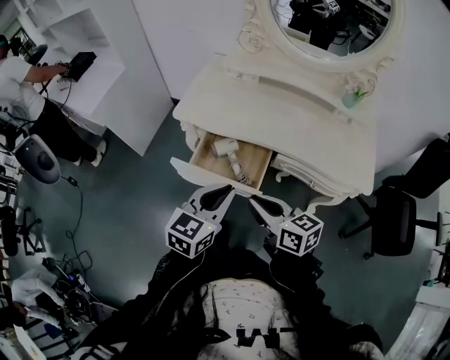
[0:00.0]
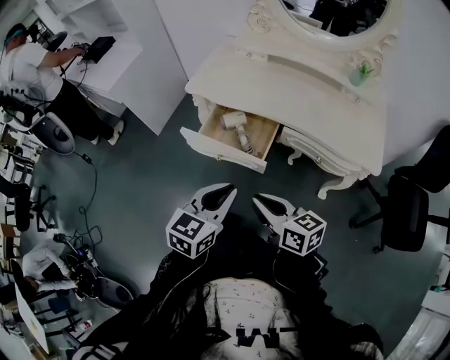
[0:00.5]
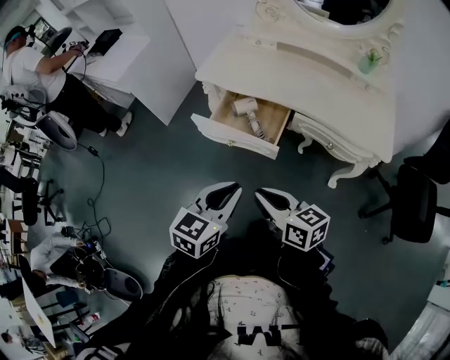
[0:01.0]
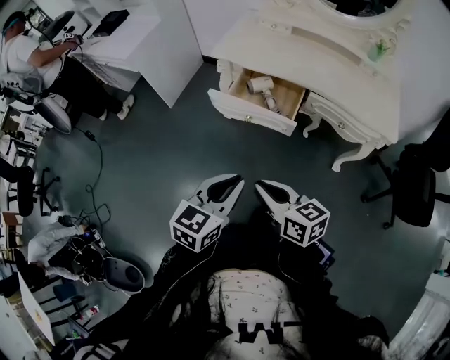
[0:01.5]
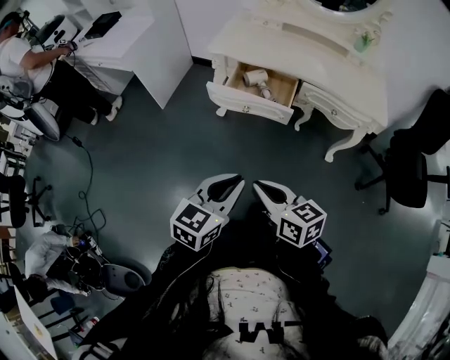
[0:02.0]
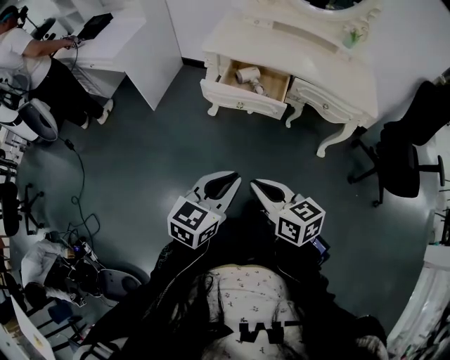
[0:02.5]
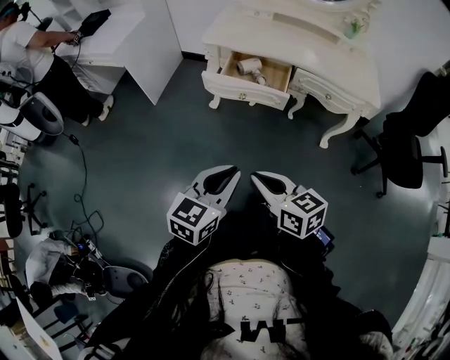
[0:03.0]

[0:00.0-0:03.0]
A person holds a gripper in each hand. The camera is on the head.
0:00.0 to 0:01.5: The grippers both shift backward and to the left by approximately 25 cm.
0:01.5 to 0:03.0: The grippers both shift backward and to the left by some 10 cm.

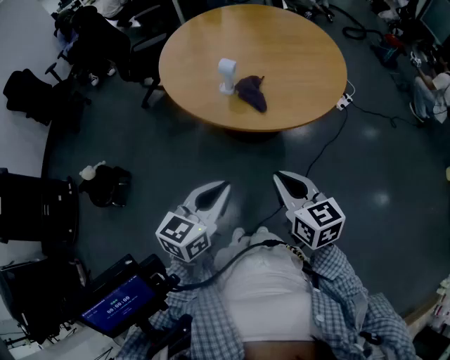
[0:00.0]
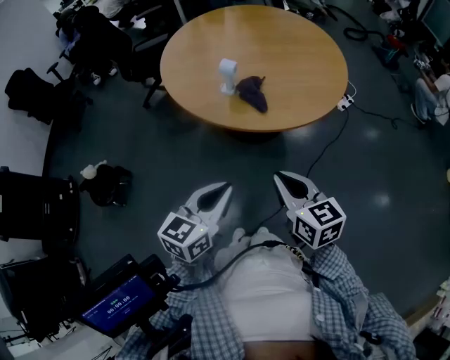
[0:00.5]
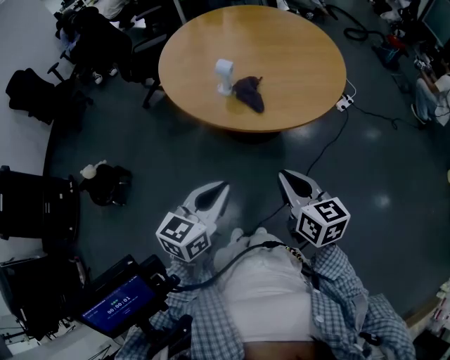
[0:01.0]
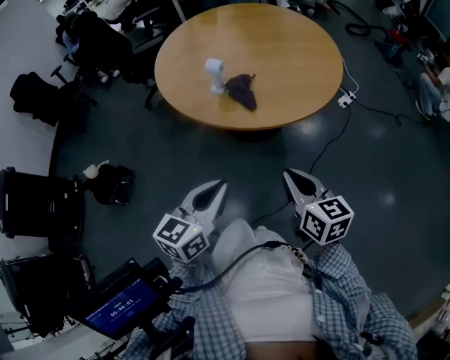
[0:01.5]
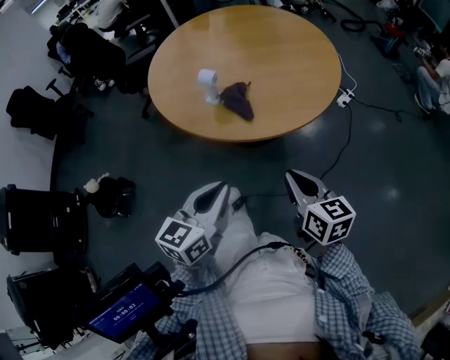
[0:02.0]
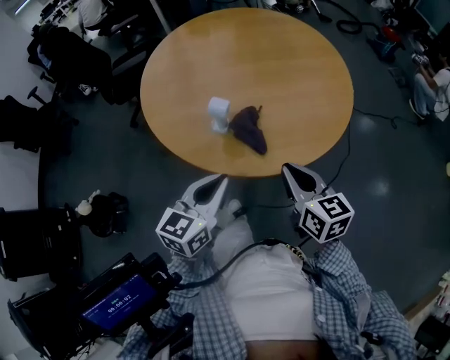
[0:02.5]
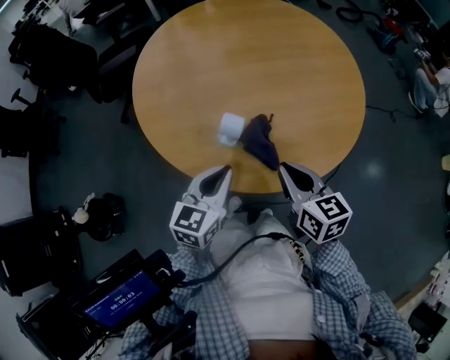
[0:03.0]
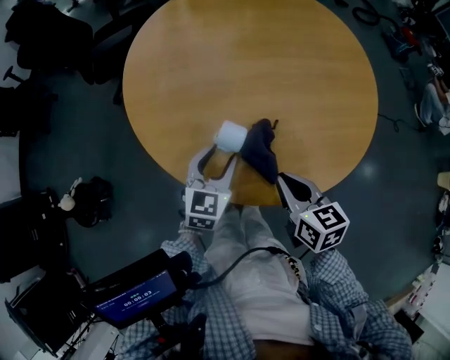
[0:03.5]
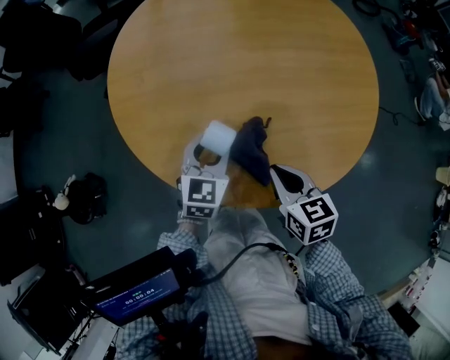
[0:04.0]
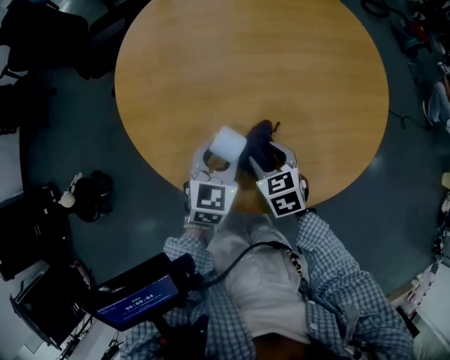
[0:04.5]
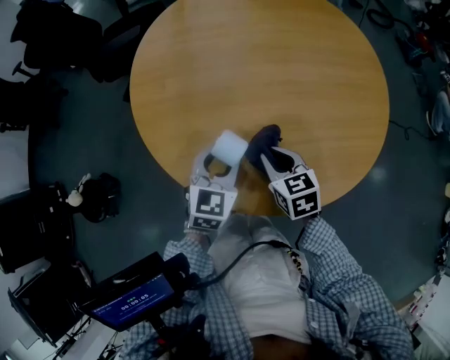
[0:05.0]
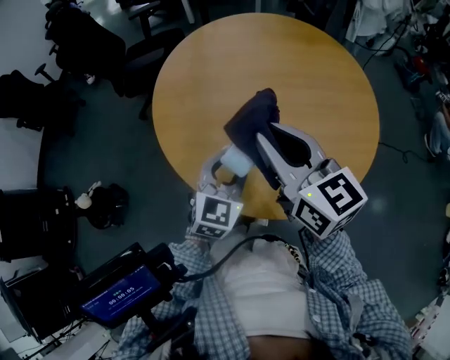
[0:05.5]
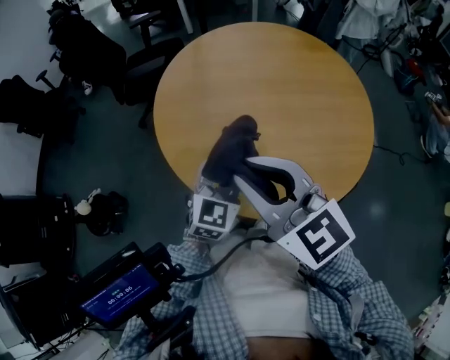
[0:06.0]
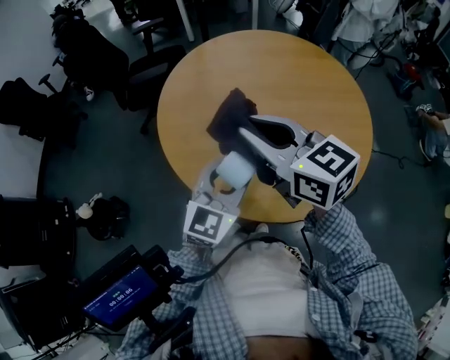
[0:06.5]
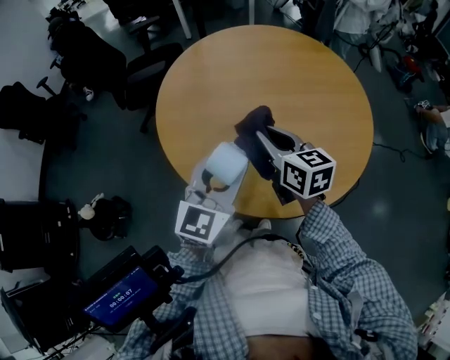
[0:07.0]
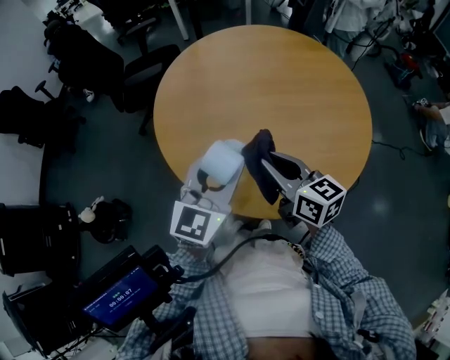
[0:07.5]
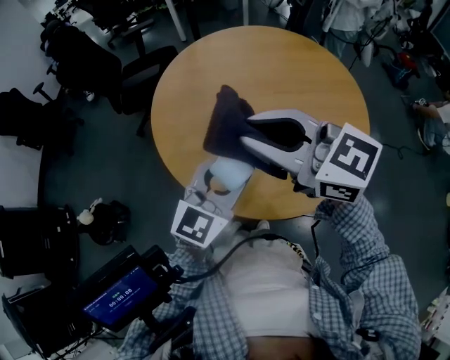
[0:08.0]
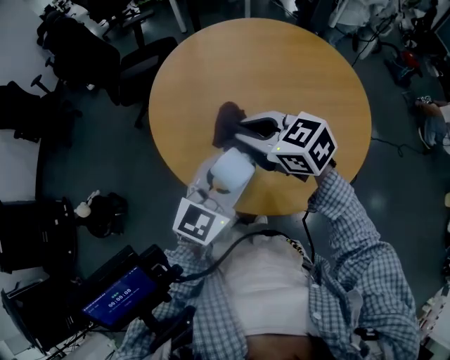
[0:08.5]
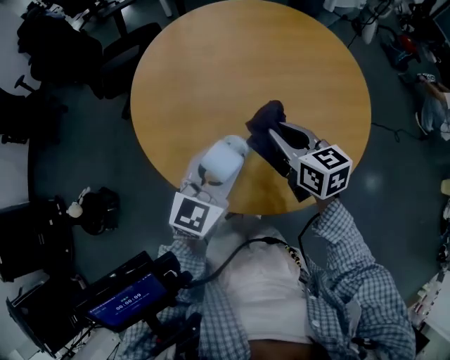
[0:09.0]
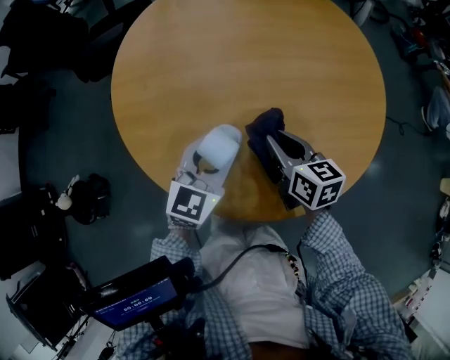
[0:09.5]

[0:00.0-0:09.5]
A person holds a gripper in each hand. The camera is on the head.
0:00.0 to 0:02.0: The left gripper ends up about 5 cm from where it was. Meanwhile the right gripper goes roughly 10 cm to the right.
0:02.0 to 0:04.0: The grippers both shift forward and downward by about 35 cm. The left gripper swivels roughly 20 degrees, and opens its fingers.
0:04.0 to 0:05.5: The left gripper goes roughly 10 cm upward. The right gripper goes approximately 25 cm upward, tips its fingers upward by roughly 30 degrees, and opens, then closes once more.
0:05.5 to 0:07.5: The left gripper is displaced upward by approximately 10 cm; the right gripper goes roughly 10 cm downward.
0:07.5 to 0:09.5: The right gripper shifts roughly 15 cm downward, to the right and forward. Meanwhile the left gripper travels downward by some 15 cm.

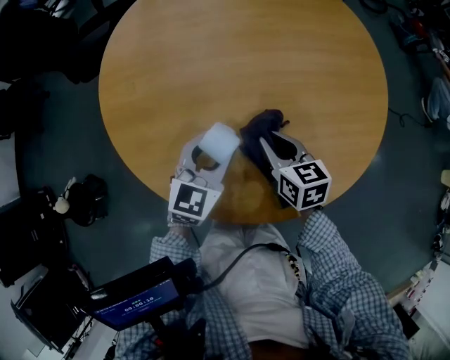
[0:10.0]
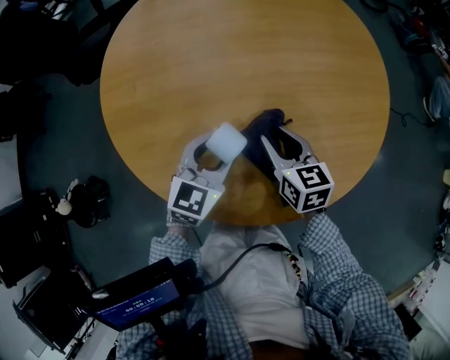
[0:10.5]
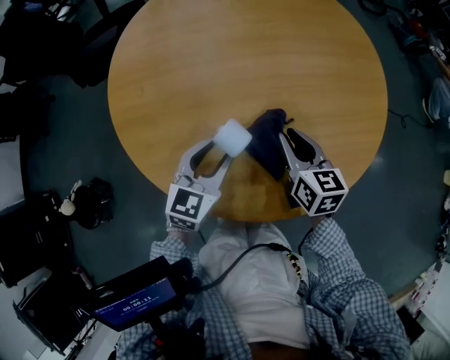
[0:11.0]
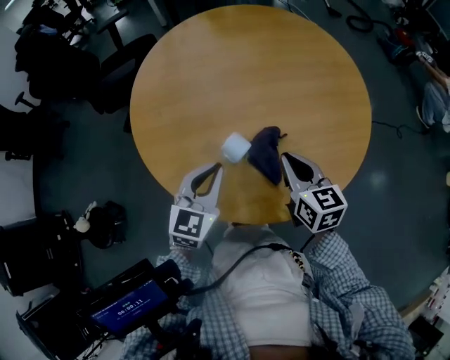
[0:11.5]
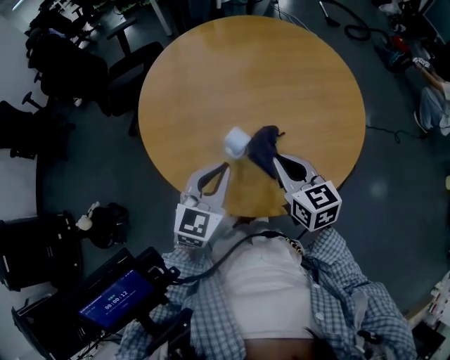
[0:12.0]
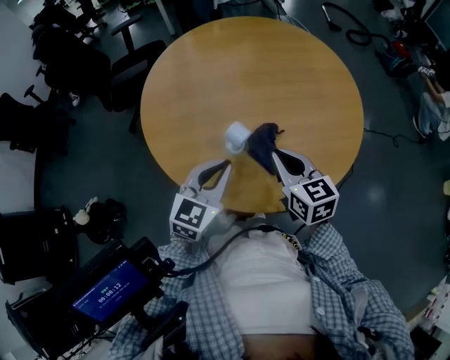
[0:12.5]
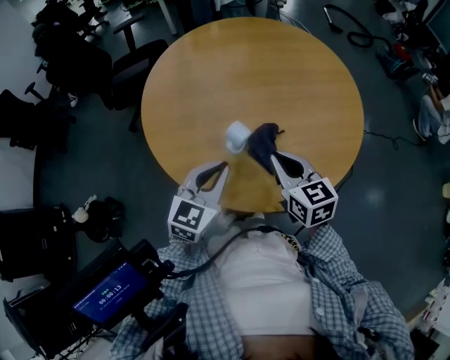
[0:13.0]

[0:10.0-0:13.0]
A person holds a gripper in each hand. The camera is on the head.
0:10.0 to 0:11.5: The left gripper shifts about 10 cm upward and backward, and closes its fingers; the right gripper travels upward by about 10 cm.
0:11.5 to 0:13.0: The grippers move only a little.

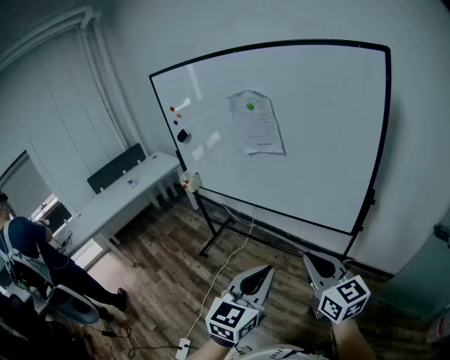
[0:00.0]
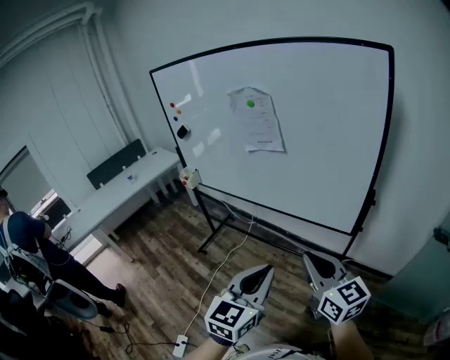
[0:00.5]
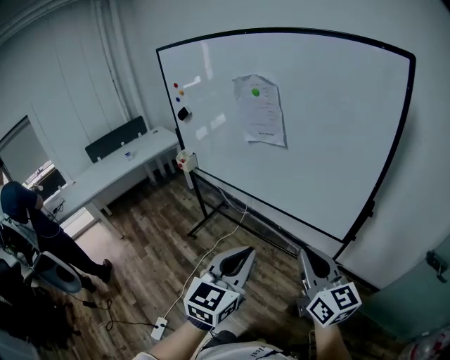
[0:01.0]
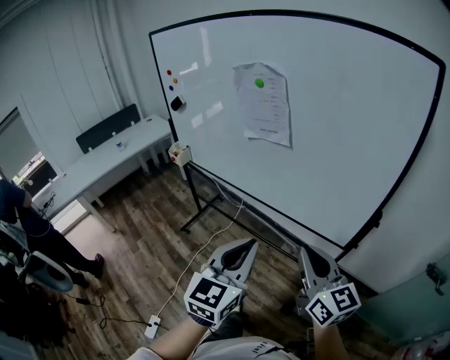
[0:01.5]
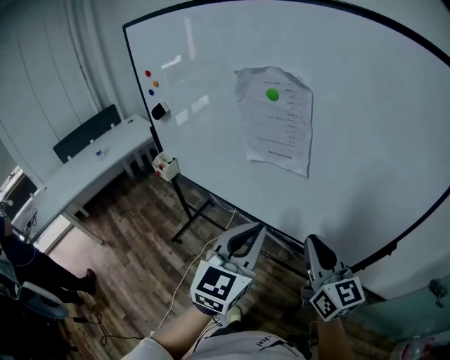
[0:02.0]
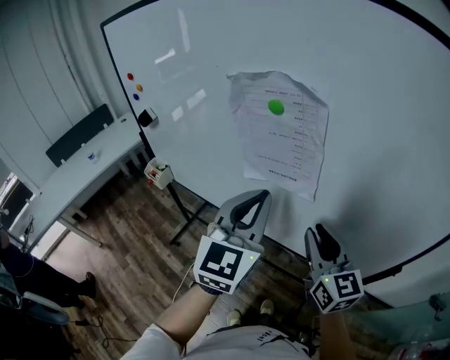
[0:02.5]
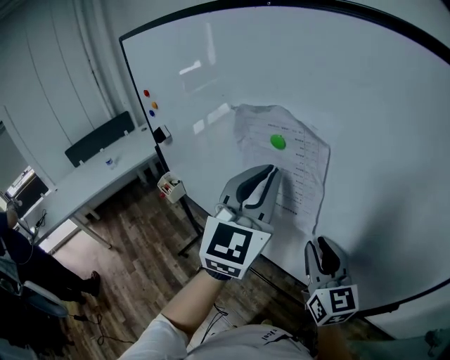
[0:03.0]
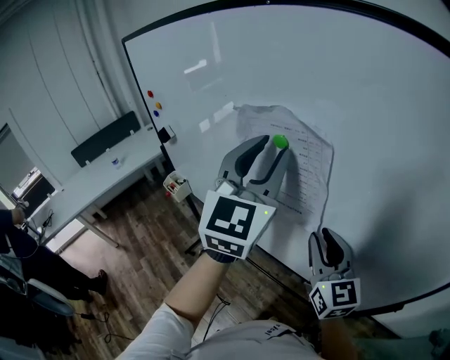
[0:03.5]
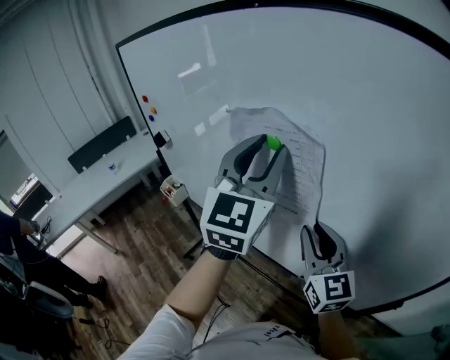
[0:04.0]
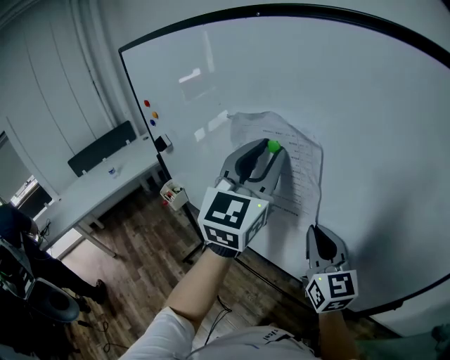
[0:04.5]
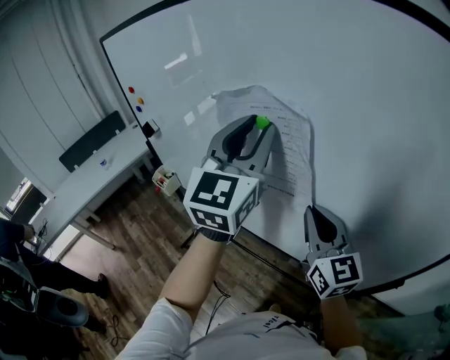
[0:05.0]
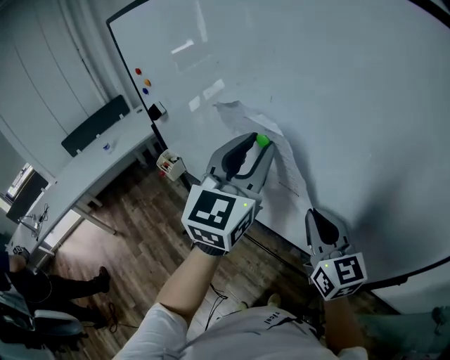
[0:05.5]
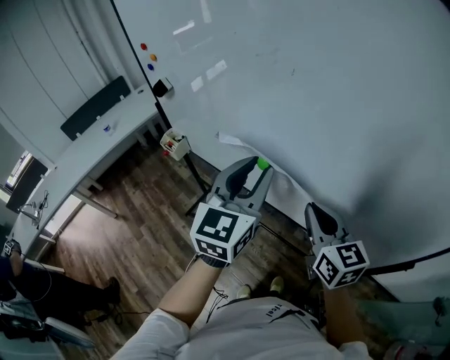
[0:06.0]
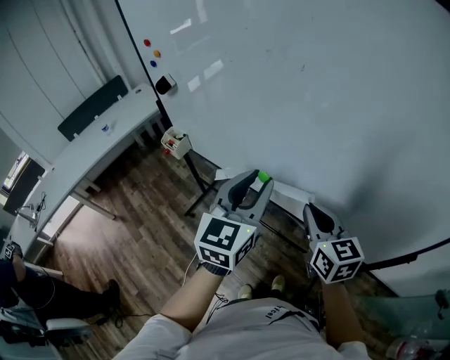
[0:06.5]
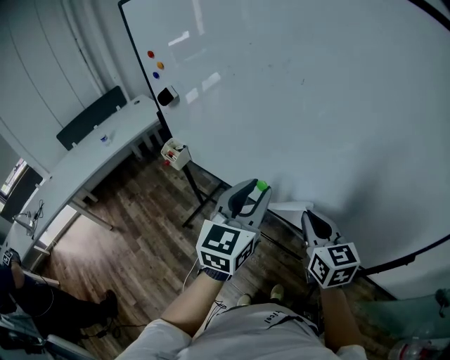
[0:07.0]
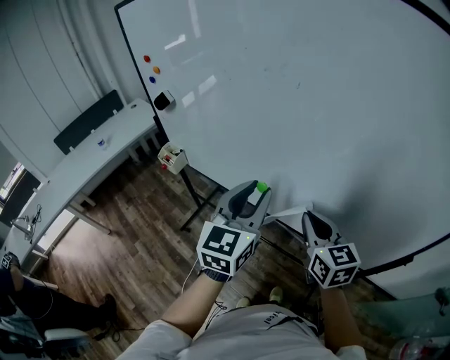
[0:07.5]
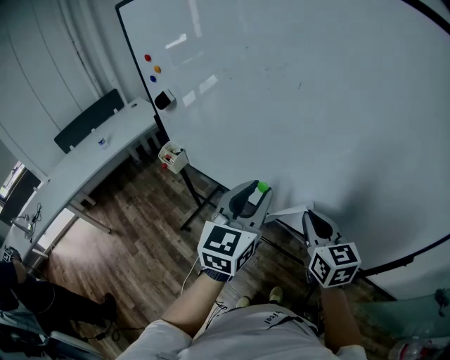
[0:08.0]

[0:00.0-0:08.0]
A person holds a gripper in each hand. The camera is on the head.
0:00.0 to 0:02.0: The two grippers go roughly 30 cm forward.
0:02.0 to 0:04.0: The left gripper is displaced forward and upward by approximately 30 cm, changes its angle by some 20 degrees, and opens up; the right gripper is displaced forward by roughly 20 cm, and opens.
0:04.0 to 0:06.0: The right gripper is displaced downward by some 5 cm, and closes up, while the left gripper heads downward and backward, covering about 20 cm.
0:06.0 to 0:08.0: The grippers make only small movements.

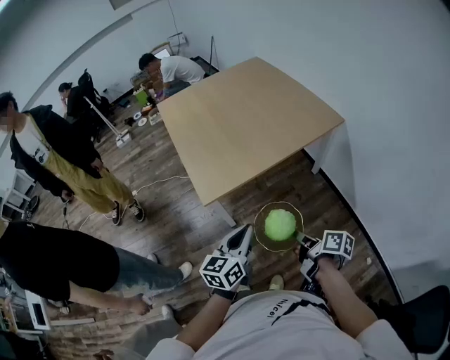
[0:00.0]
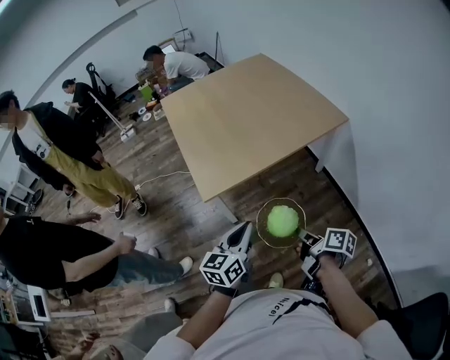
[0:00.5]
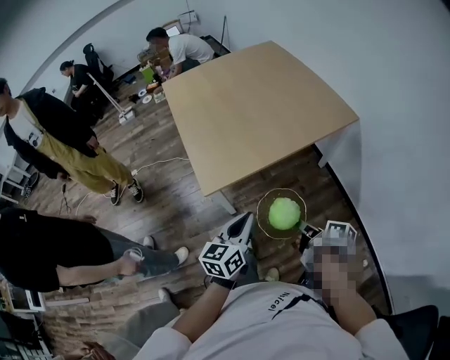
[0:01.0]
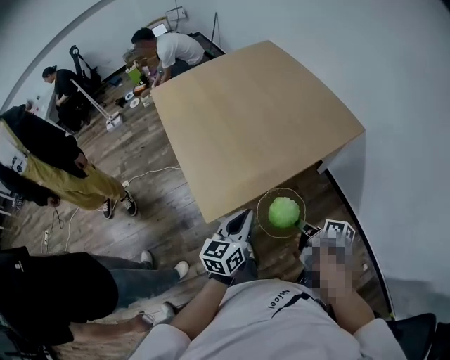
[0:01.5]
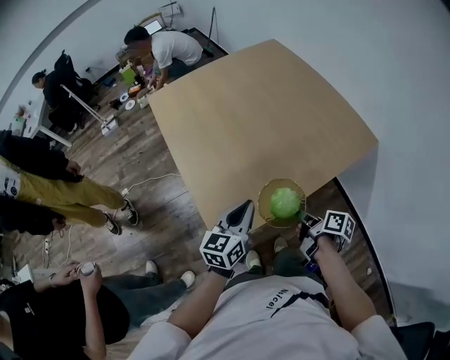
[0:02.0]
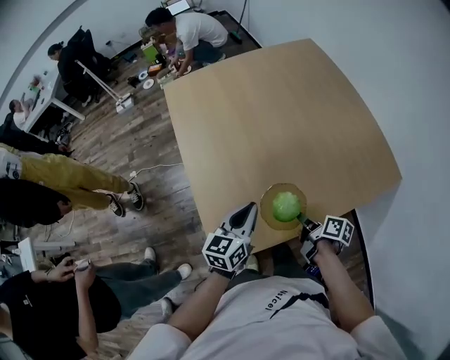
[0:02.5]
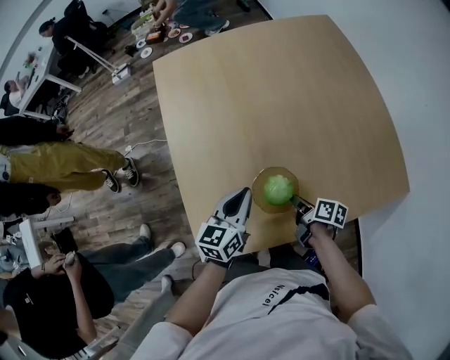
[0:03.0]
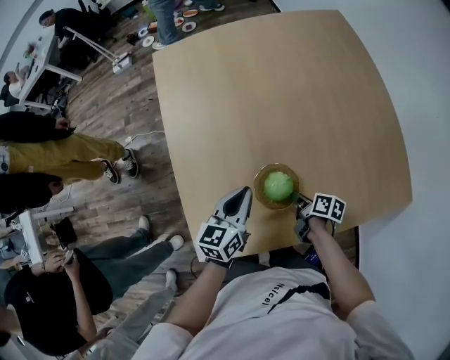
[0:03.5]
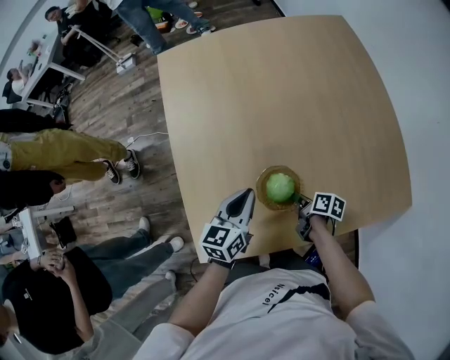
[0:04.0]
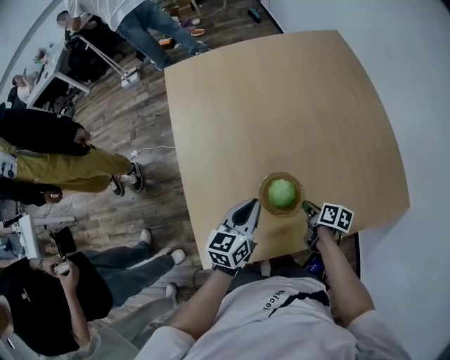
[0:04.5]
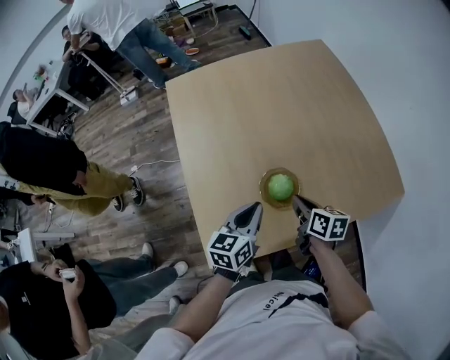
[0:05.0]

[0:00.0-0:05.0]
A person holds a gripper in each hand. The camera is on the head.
0:00.0 to 0:02.5: The left gripper shifts by about 40 cm.
